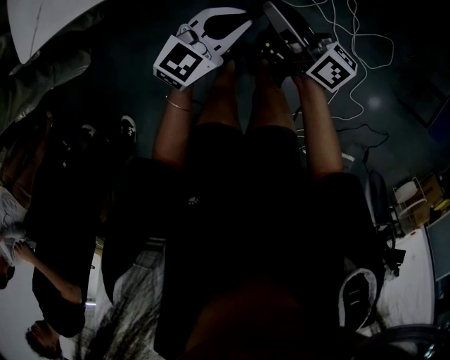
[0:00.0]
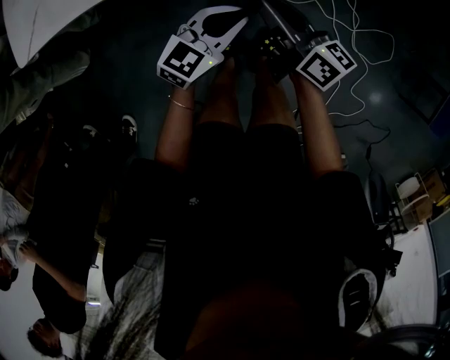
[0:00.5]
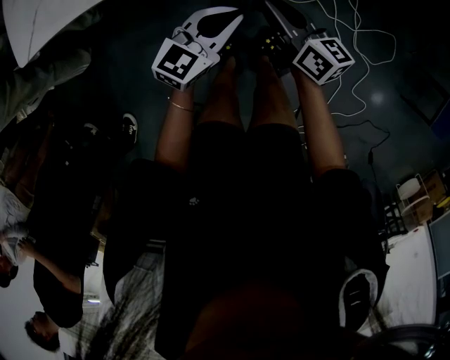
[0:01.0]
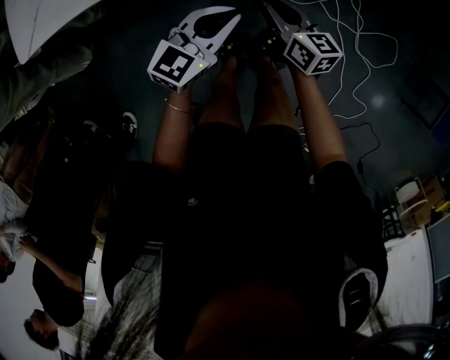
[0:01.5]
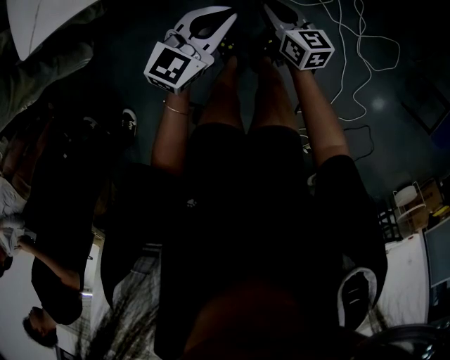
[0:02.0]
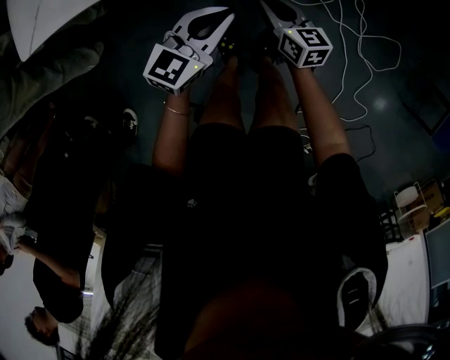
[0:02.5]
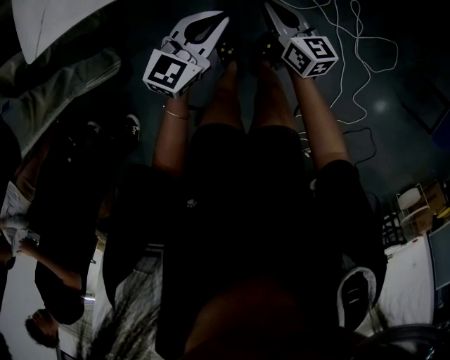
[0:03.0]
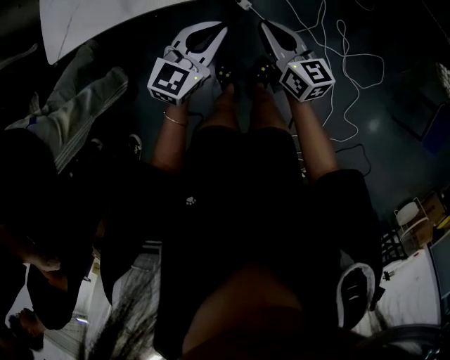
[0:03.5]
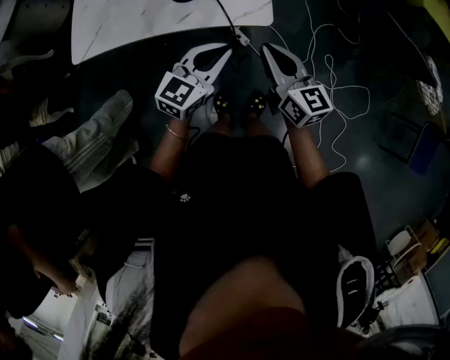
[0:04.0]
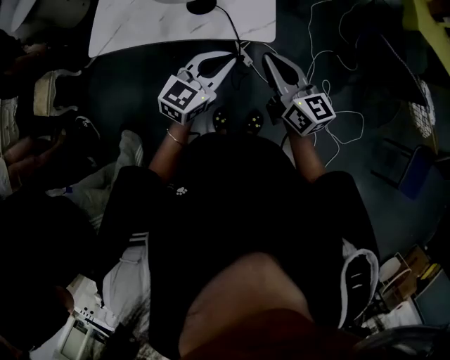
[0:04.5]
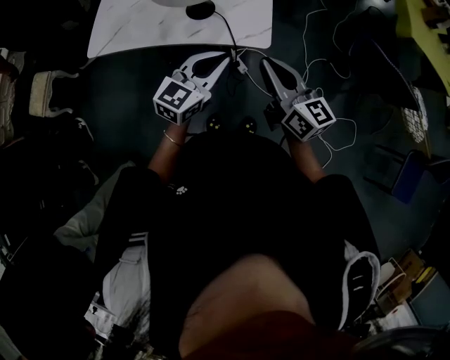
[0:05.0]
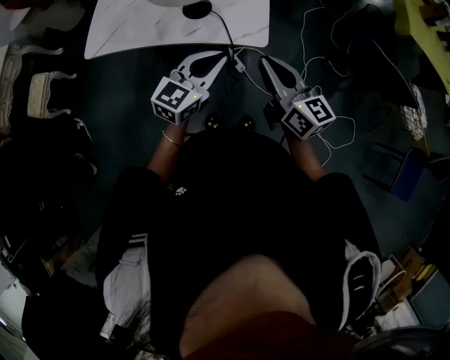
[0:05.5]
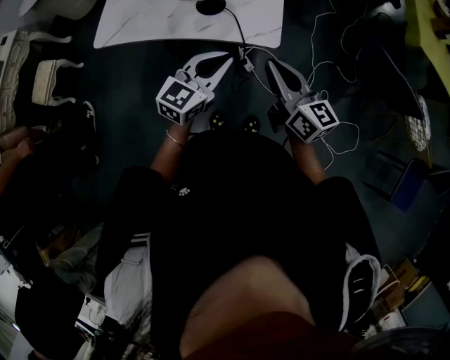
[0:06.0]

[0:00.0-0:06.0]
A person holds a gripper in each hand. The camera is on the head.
0:00.0 to 0:02.0: The right gripper moves downward, roughly 15 cm, and rotates roughly 40 degrees.
0:02.0 to 0:04.0: The right gripper travels upward by some 30 cm, and rotates roughly 20 degrees, while the left gripper moves upward, roughly 15 cm.
0:04.0 to 0:06.0: The grippers both shift upward by approximately 5 cm.

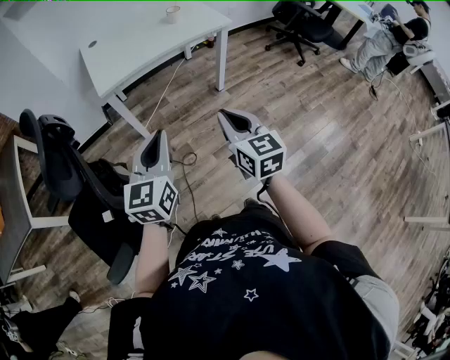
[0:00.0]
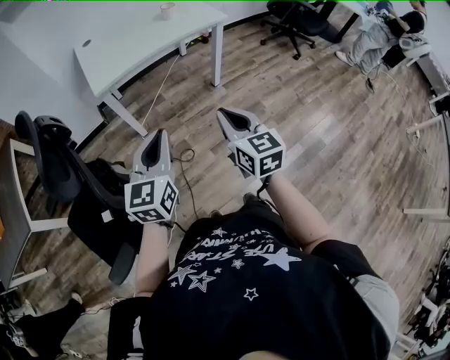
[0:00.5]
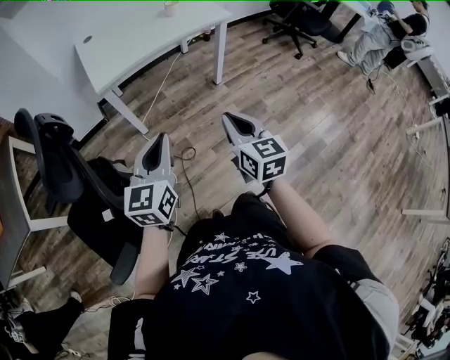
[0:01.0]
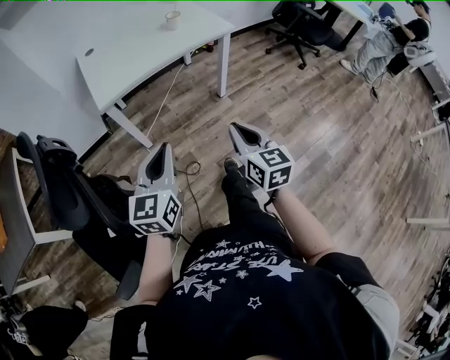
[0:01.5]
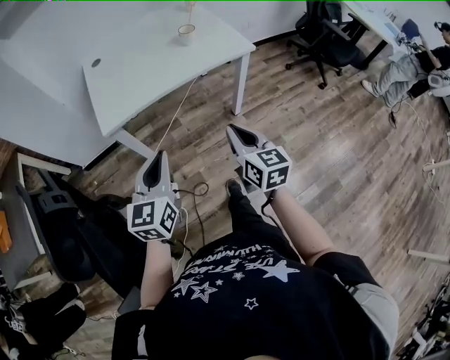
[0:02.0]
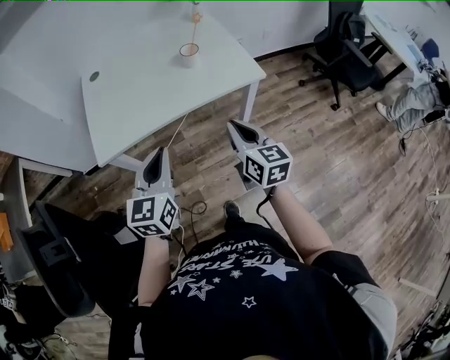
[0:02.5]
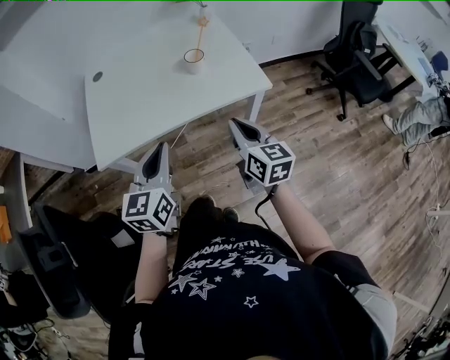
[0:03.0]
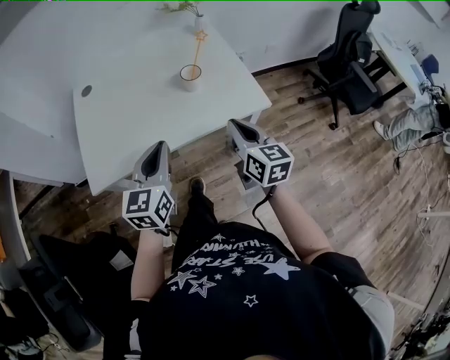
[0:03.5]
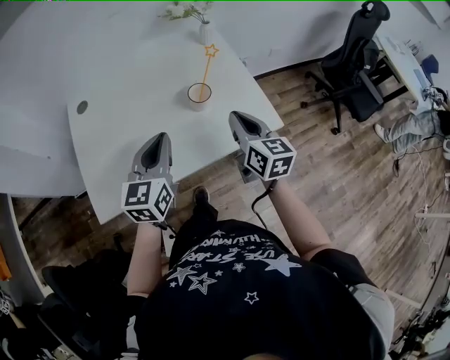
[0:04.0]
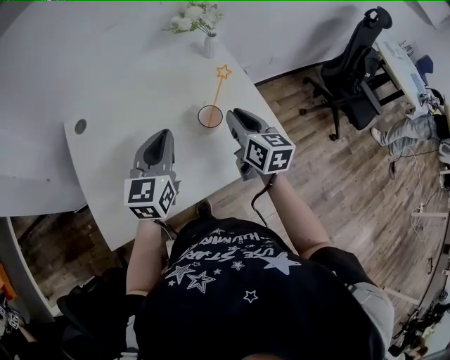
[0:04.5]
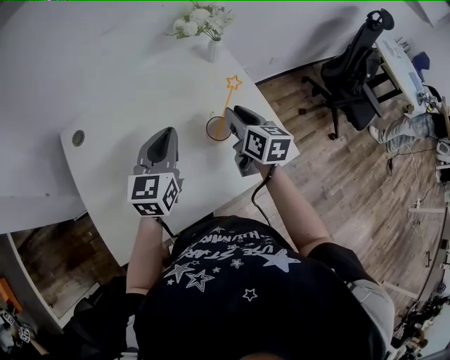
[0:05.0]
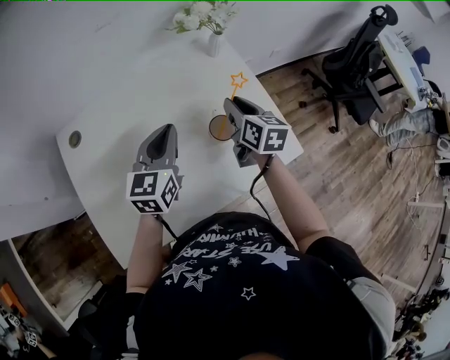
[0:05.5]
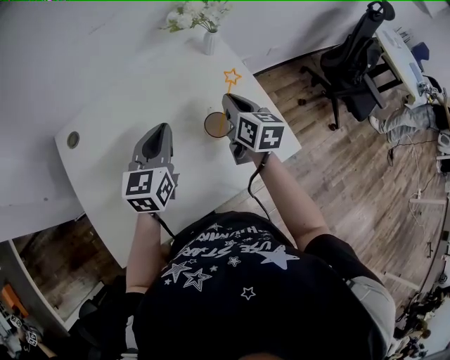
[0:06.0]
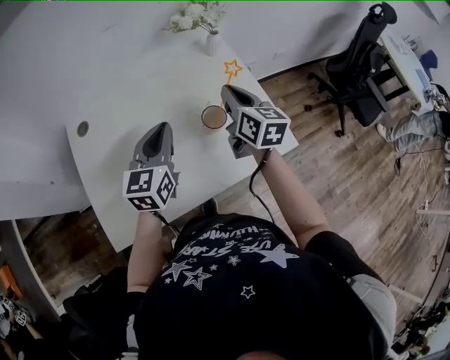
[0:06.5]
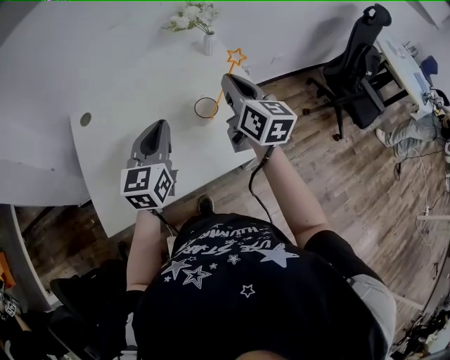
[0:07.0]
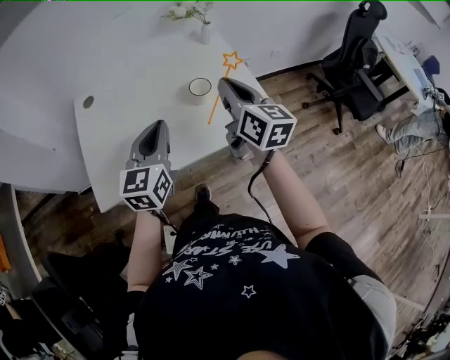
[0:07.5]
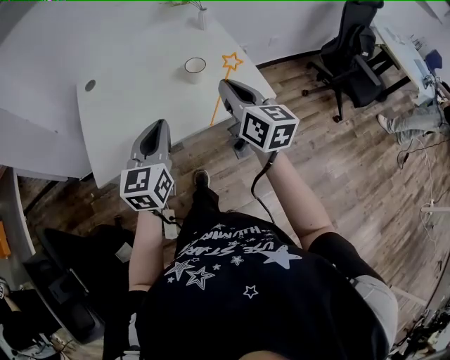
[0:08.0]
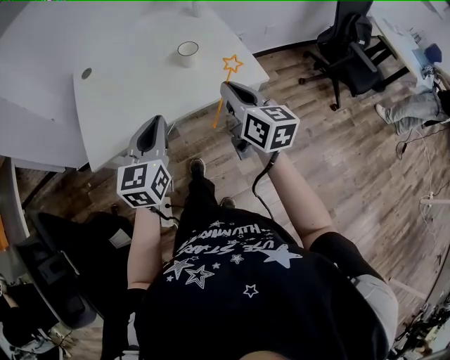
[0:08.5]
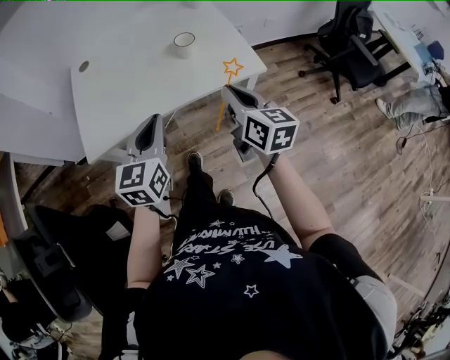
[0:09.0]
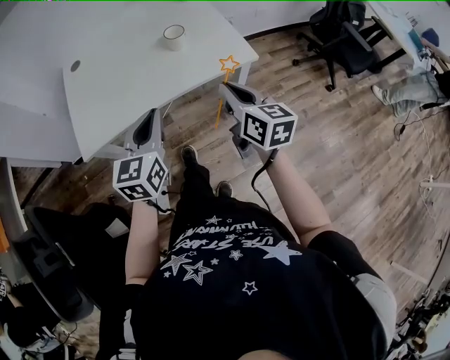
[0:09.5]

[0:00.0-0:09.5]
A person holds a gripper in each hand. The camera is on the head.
0:00.0 to 0:02.0: Both grippers move forward, some 20 cm.
0:02.0 to 0:04.0: The two grippers travel together, forward, roughly 40 cm.
0:04.0 to 0:05.5: The two grippers go roughly 20 cm forward. The right gripper opens.
0:05.5 to 0:07.5: The right gripper is displaced backward and upward by roughly 20 cm, changes its angle by roughly 20 degrees, and closes. Meanwhile the left gripper shifts about 20 cm backward.
0:07.5 to 0:09.5: The two grippers go about 20 cm backward.

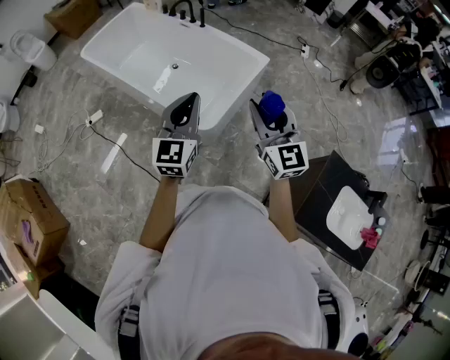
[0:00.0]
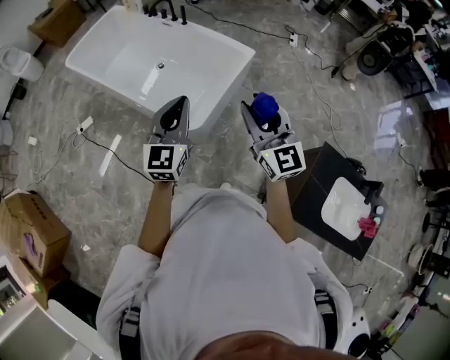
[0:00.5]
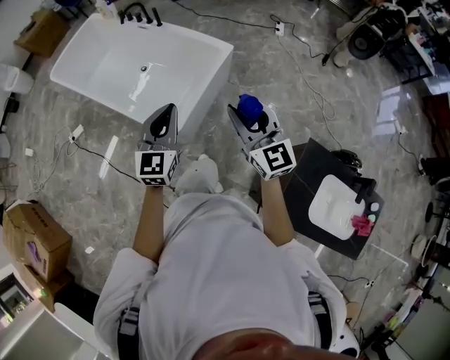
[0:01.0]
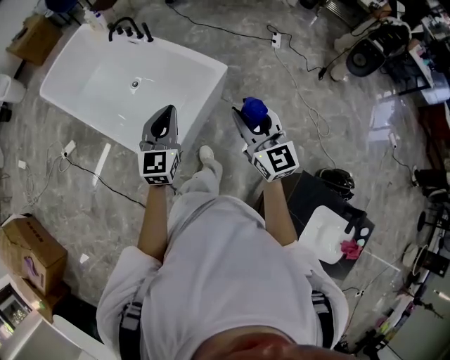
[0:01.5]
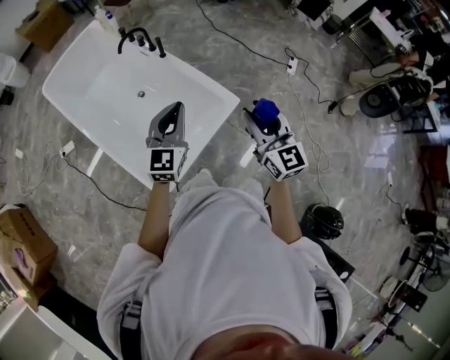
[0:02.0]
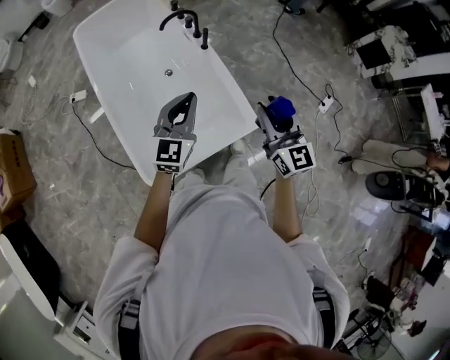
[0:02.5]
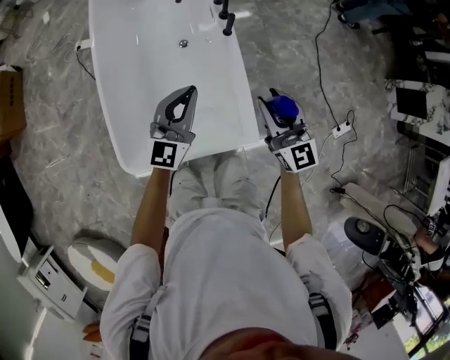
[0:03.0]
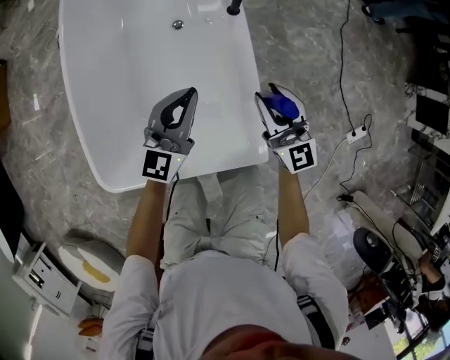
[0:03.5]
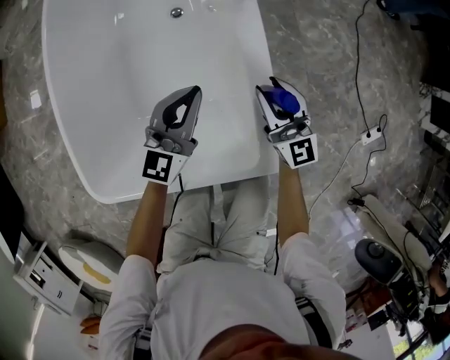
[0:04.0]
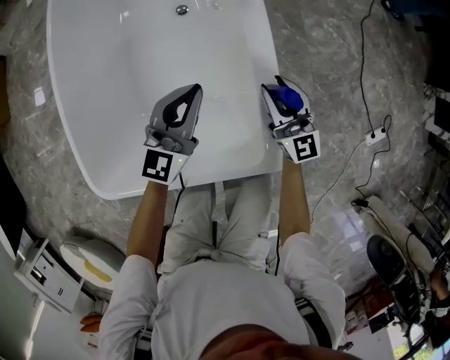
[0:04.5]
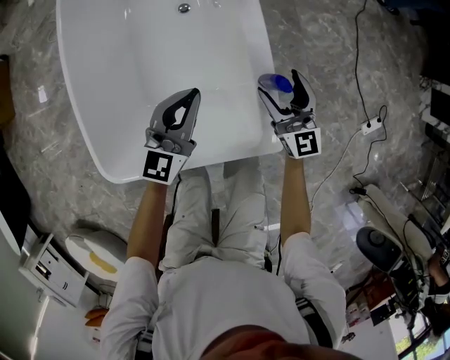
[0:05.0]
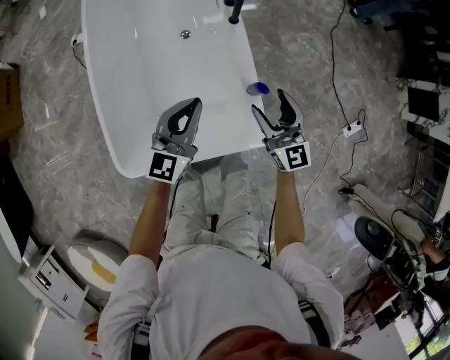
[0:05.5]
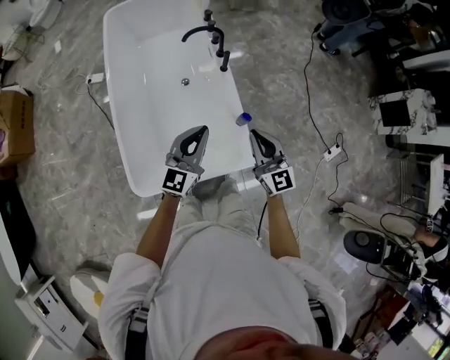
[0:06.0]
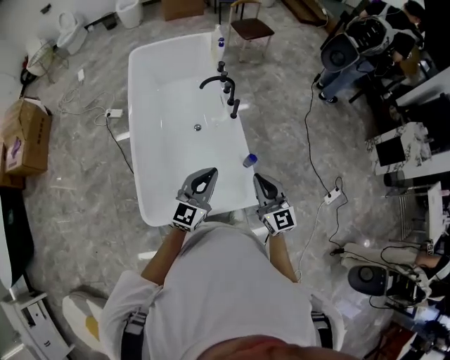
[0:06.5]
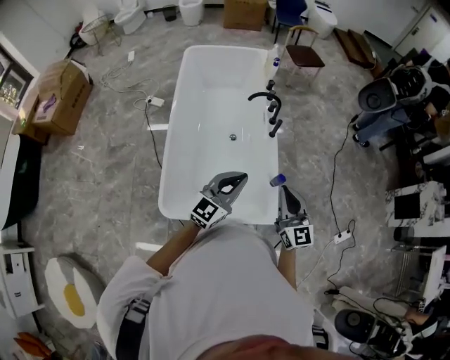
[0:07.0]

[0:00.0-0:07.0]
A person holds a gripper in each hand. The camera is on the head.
0:00.0 to 0:02.0: The pair of grippers is taken forward and to the right, roughly 40 cm.
0:02.0 to 0:03.5: The left gripper heads downward, covering some 30 cm, and swivels approximately 30 degrees. The right gripper ends up roughly 50 cm from where it was, and swivels approximately 40 degrees.
0:03.5 to 0:05.0: The right gripper is displaced downward by some 10 cm, and opens its fingers.
0:05.0 to 0:07.0: The two grippers go approximately 35 cm upward. The right gripper closes up.

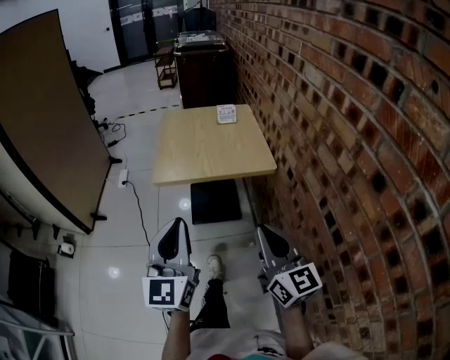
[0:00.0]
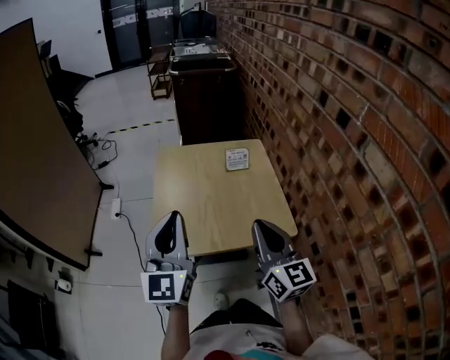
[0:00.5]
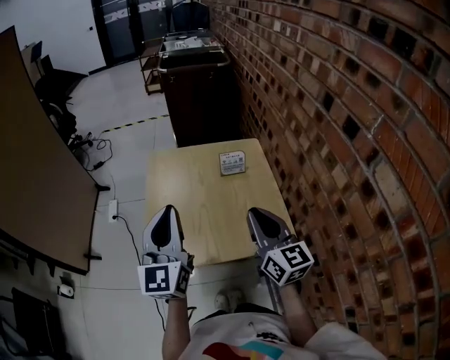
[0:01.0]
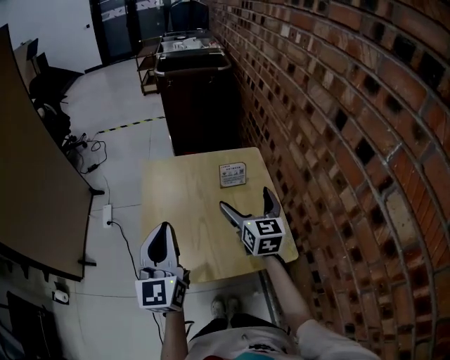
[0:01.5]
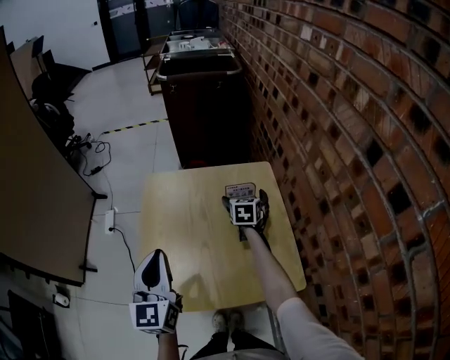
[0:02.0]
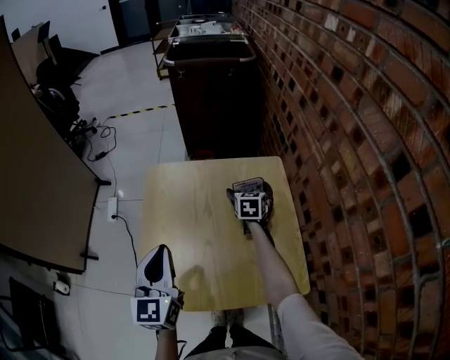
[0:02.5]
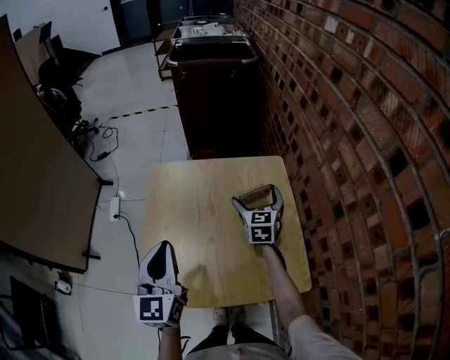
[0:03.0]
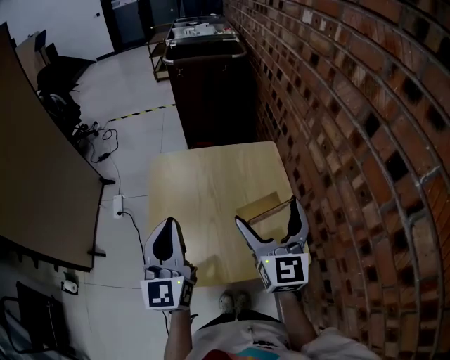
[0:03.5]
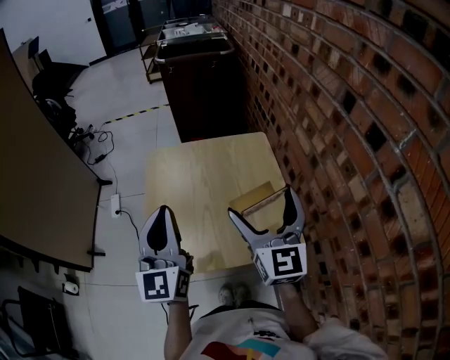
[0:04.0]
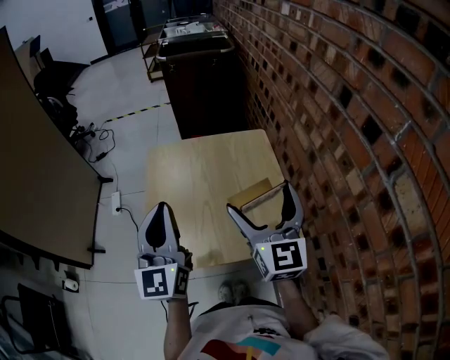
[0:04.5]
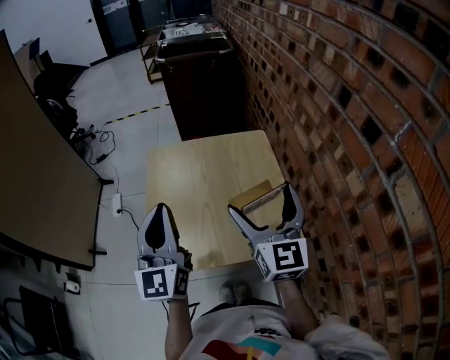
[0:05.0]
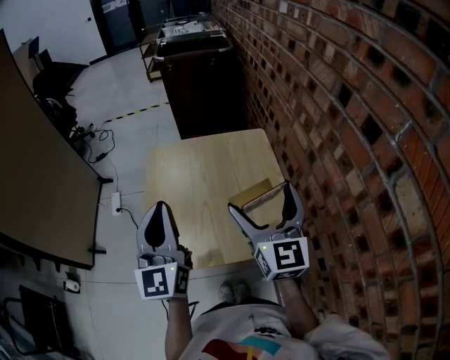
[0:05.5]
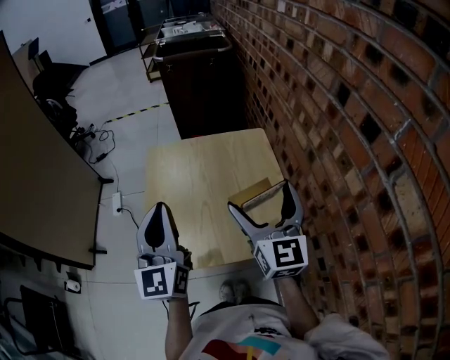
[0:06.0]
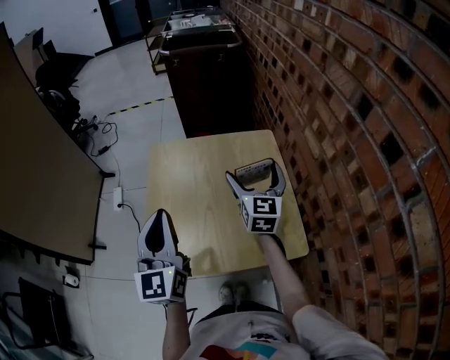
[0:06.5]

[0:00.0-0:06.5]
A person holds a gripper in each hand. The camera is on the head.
0:00.0 to 0:02.0: The pair of grippers is taken forward, about 60 cm. The right gripper points its fingers roughly 40 degrees further downward, and opens up.
0:02.0 to 0:04.5: The left gripper heads upward and backward, covering roughly 10 cm. The right gripper is displaced backward and upward by approximately 40 cm, and tips its fingers upward by about 40 degrees.
0:04.5 to 0:06.5: The left gripper changes place by roughly 5 cm, while the right gripper shifts some 20 cm forward and downward.
